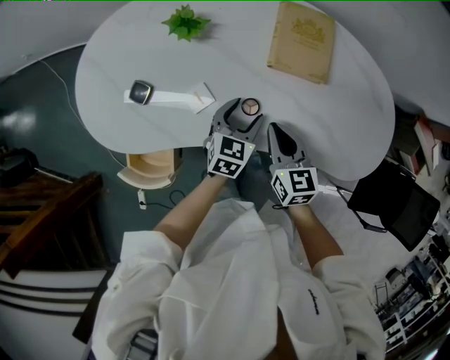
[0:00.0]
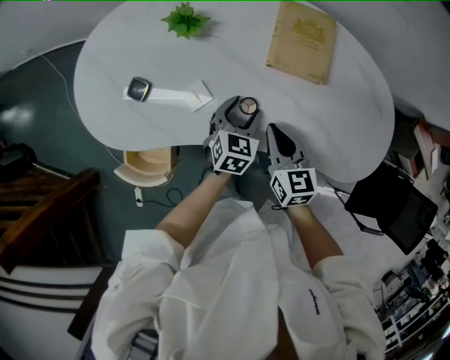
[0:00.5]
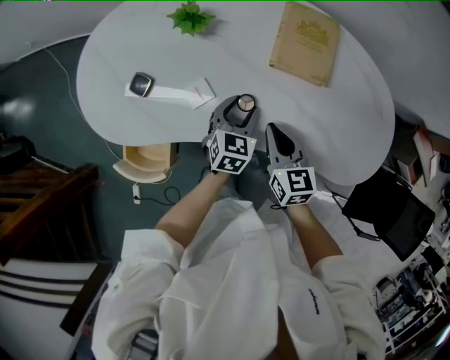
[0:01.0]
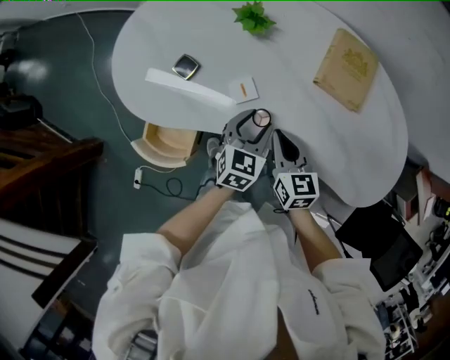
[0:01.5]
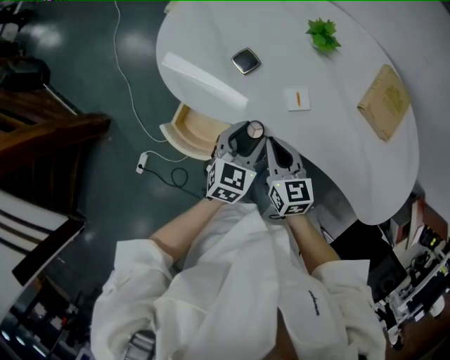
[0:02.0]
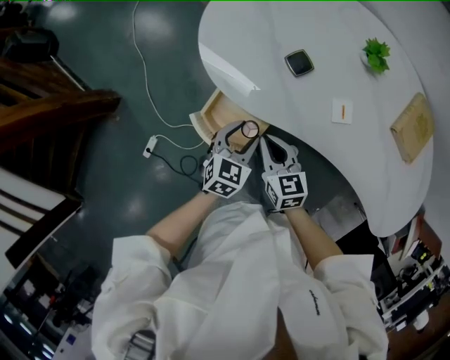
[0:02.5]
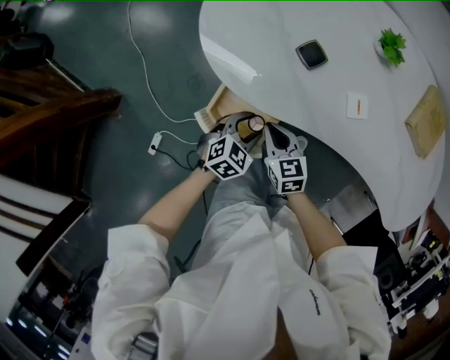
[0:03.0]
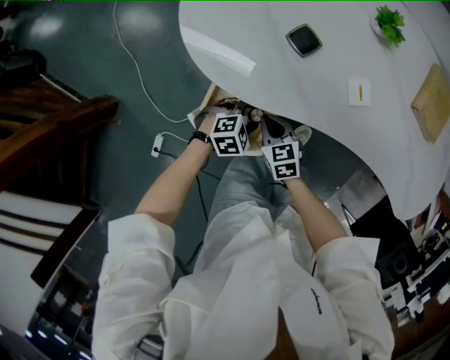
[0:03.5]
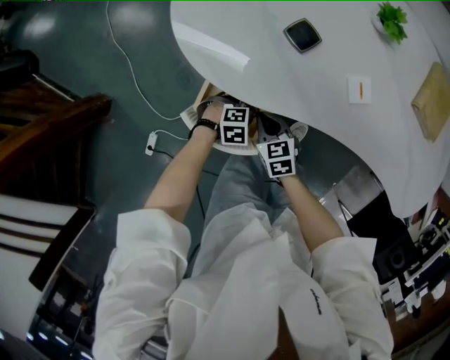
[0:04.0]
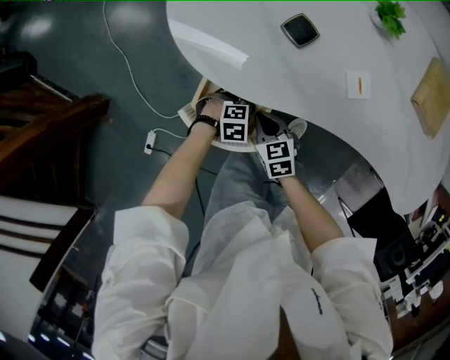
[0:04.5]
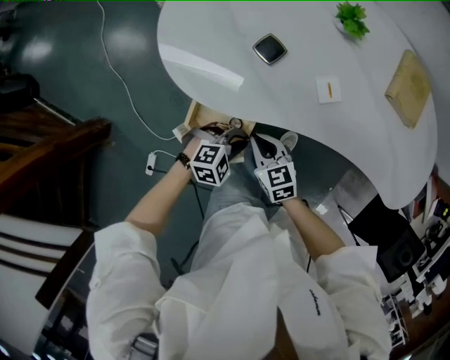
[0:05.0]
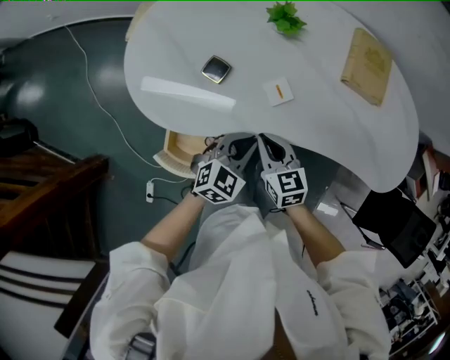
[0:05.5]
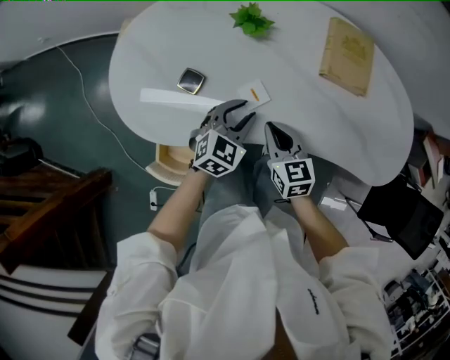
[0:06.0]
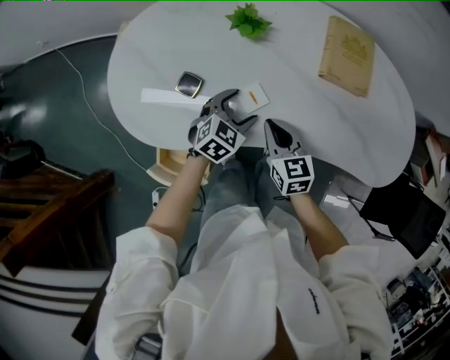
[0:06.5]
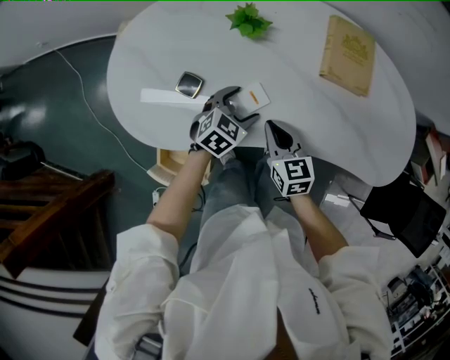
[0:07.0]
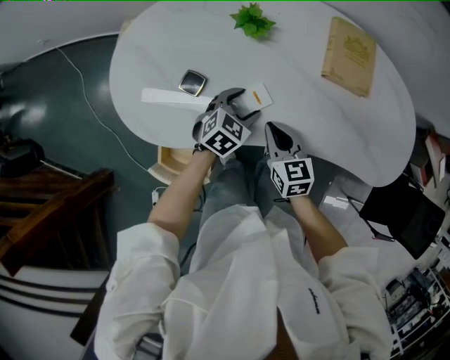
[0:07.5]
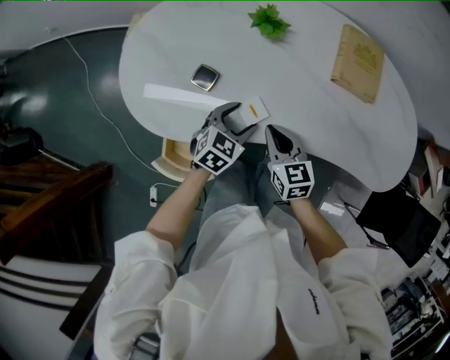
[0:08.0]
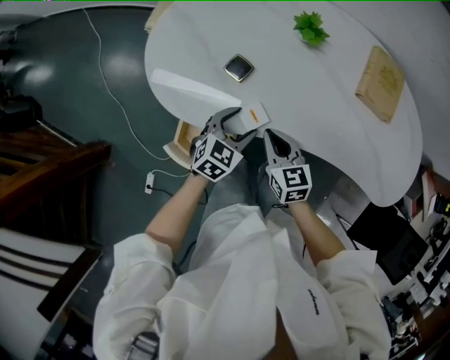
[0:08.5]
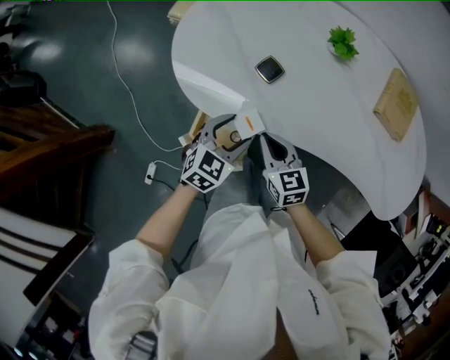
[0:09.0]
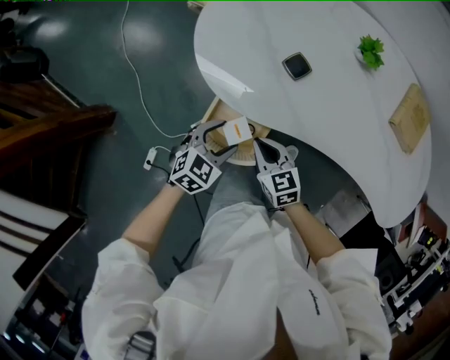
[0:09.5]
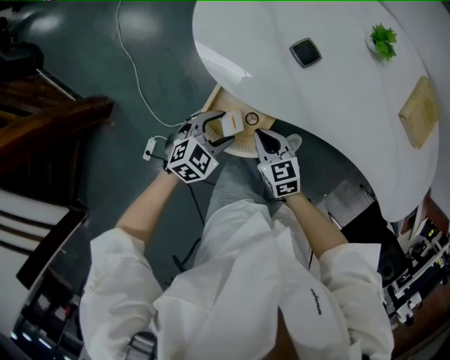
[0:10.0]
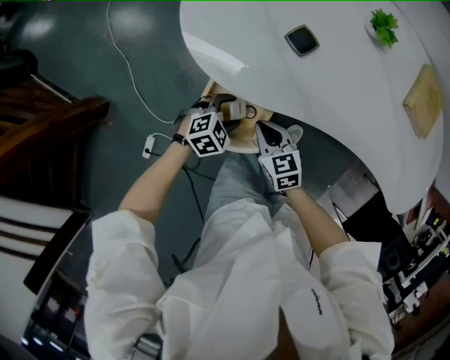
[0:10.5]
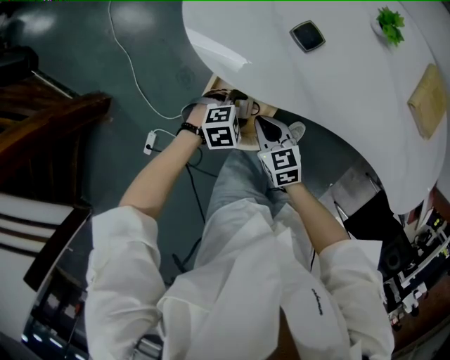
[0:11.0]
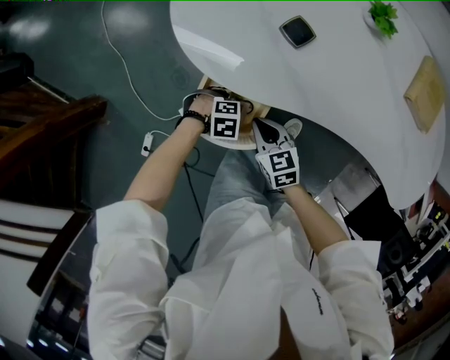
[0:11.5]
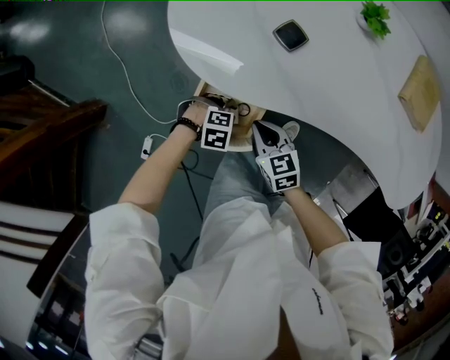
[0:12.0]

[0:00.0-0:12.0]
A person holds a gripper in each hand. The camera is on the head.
0:00.0 to 0:02.0: Both grippers move to the left, some 25 cm. The right gripper rotates about 20 degrees. The left gripper turns by about 20 degrees.
0:02.0 to 0:04.0: The two grippers go roughly 25 cm downward. The right gripper changes its angle by roughly 20 degrees; the left gripper rotates roughly 70 degrees.
0:04.0 to 0:06.0: The right gripper shifts by some 35 cm, and turns by some 30 degrees. The left gripper moves upward, about 25 cm, and points its fingers approximately 30 degrees further upward.
0:06.0 to 0:08.0: The left gripper moves approximately 5 cm, and opens its fingers.
0:08.0 to 0:10.0: The left gripper goes roughly 30 cm to the left and backward; the right gripper goes some 25 cm to the left, backward and downward, and changes its angle by about 30 degrees.
0:10.0 to 0:12.0: The left gripper moves downward, approximately 15 cm, and turns by roughly 50 degrees.

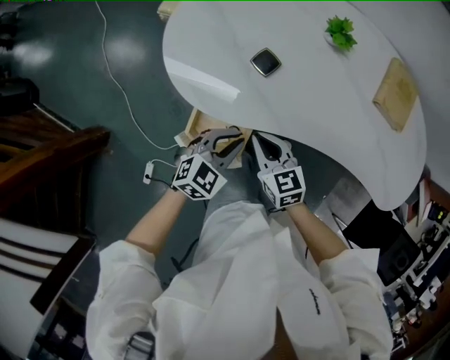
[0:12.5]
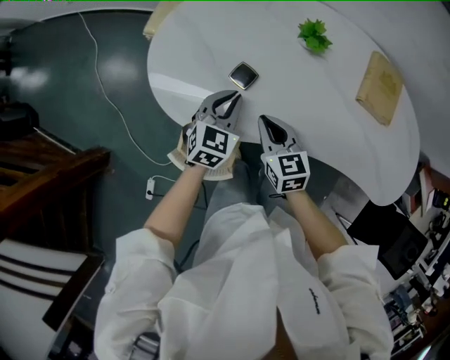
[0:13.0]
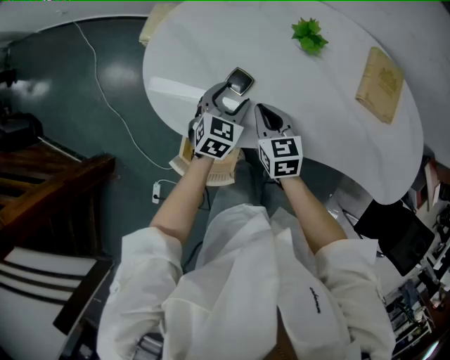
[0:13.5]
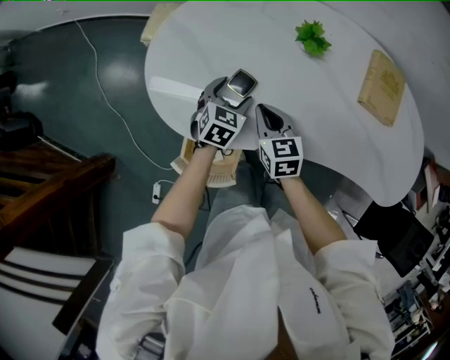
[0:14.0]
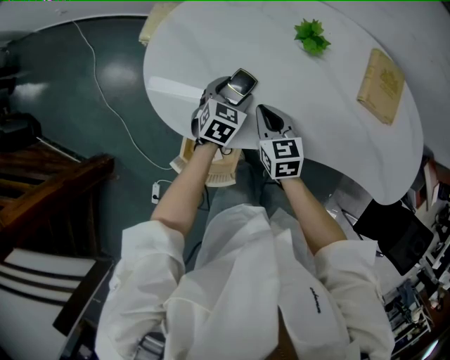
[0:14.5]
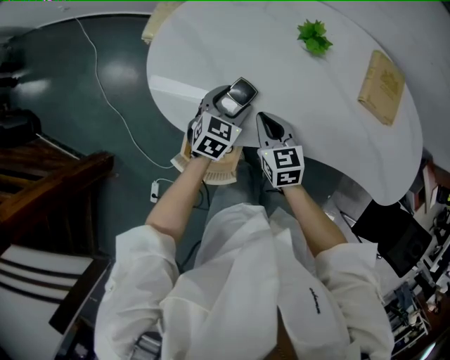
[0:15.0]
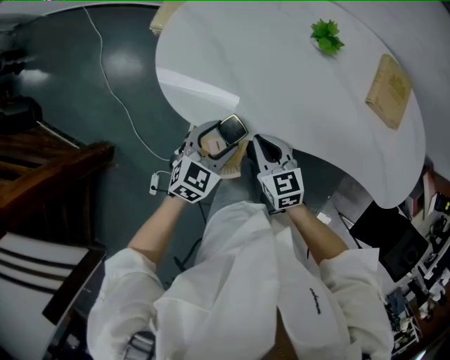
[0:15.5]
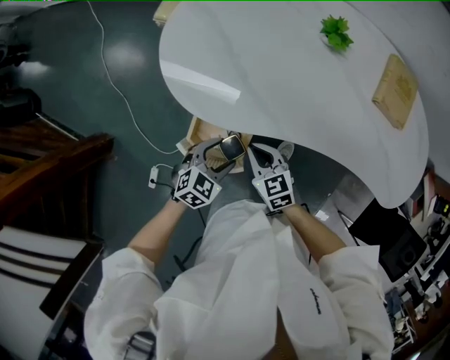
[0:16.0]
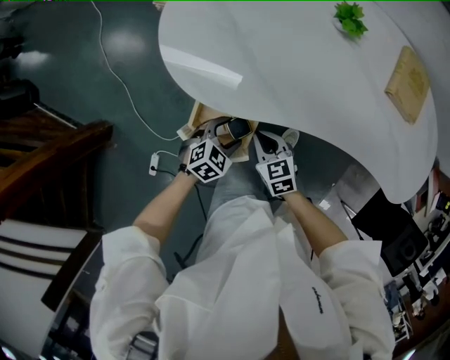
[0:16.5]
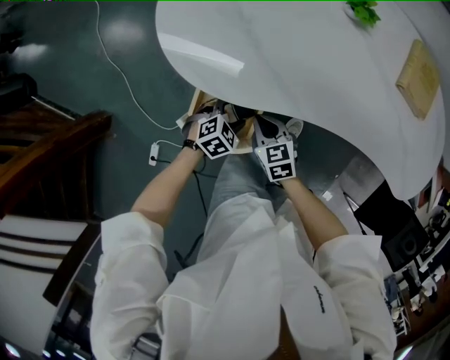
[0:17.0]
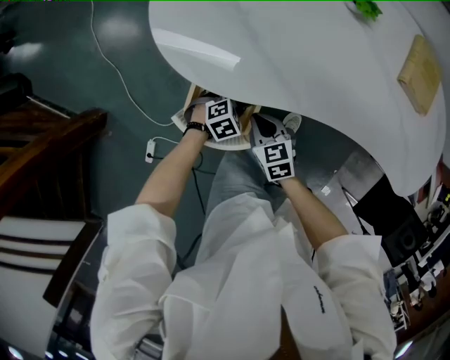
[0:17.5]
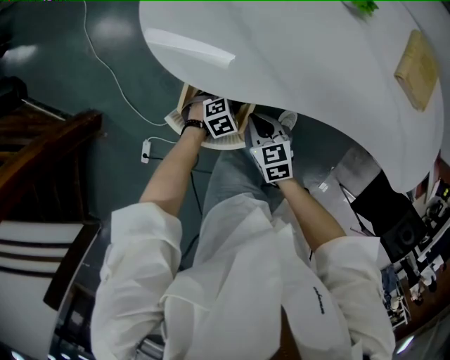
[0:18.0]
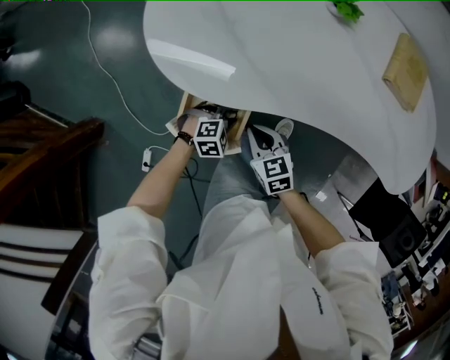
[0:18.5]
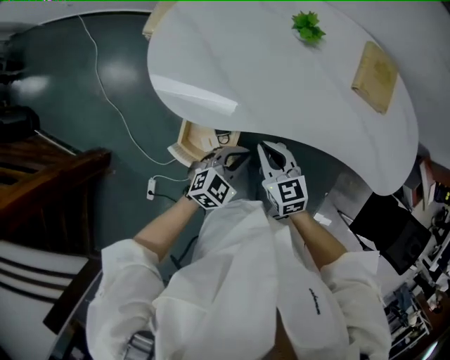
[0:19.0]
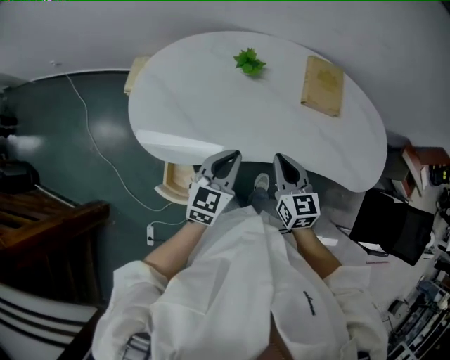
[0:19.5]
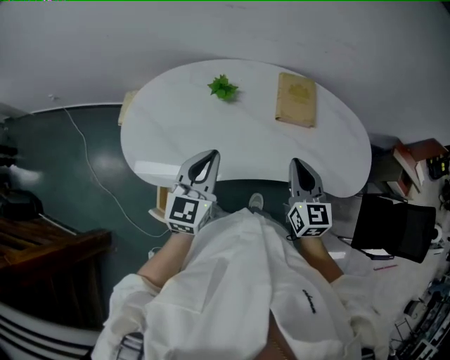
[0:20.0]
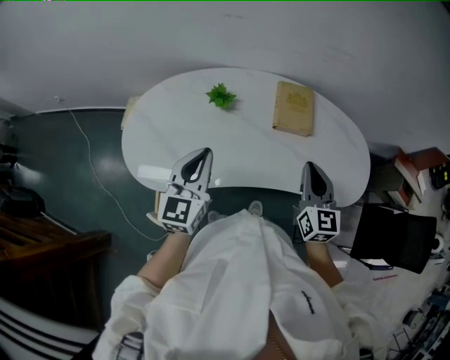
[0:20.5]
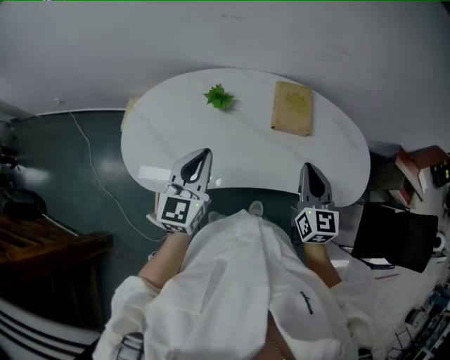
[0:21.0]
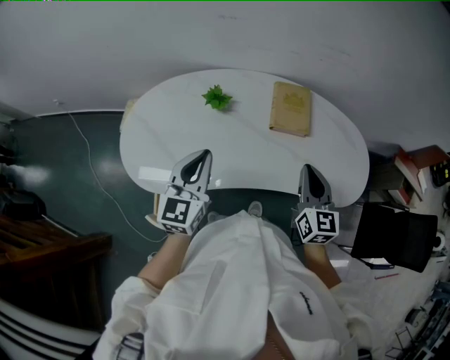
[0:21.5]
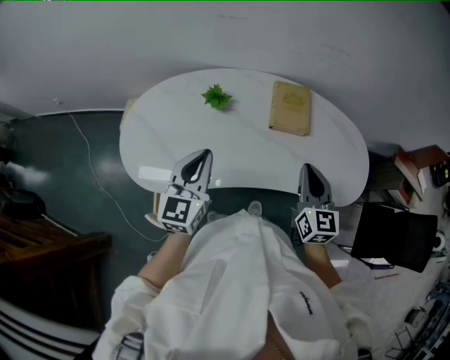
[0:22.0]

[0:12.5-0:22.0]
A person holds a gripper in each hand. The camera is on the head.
0:12.5 to 0:14.5: The two grippers go roughly 20 cm forward. The left gripper opens up.
0:14.5 to 0:16.5: The left gripper is displaced backward by roughly 25 cm, and rotates some 20 degrees; the right gripper heads backward and downward, covering about 20 cm, and rotates about 20 degrees.
0:16.5 to 0:18.0: The left gripper travels downward by roughly 15 cm.
0:18.0 to 0:20.0: The right gripper shifts about 50 cm upward and to the right, and tips its fingers upward by approximately 30 degrees. The left gripper shifts about 50 cm upward, points its fingers roughly 60 degrees further upward, and closes its fingers.
0:20.0 to 0:22.0: The right gripper is displaced to the right by about 5 cm.

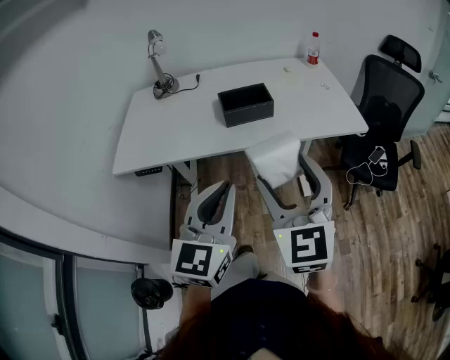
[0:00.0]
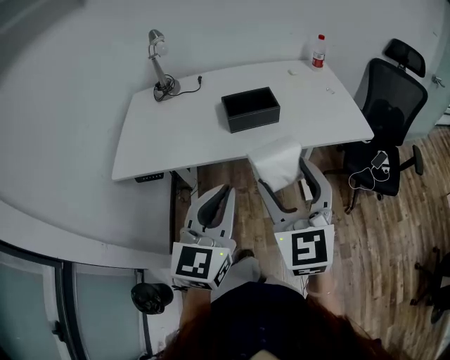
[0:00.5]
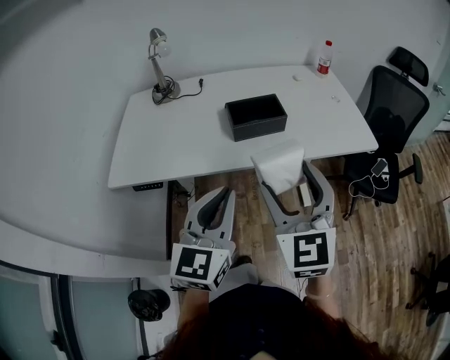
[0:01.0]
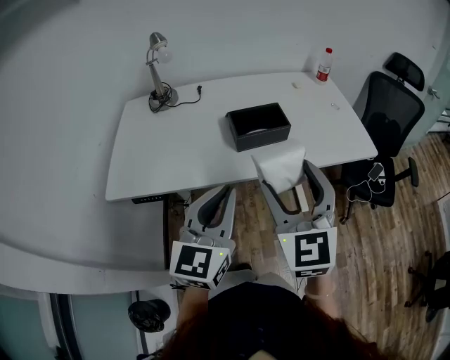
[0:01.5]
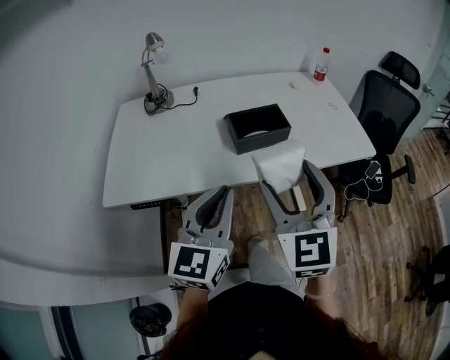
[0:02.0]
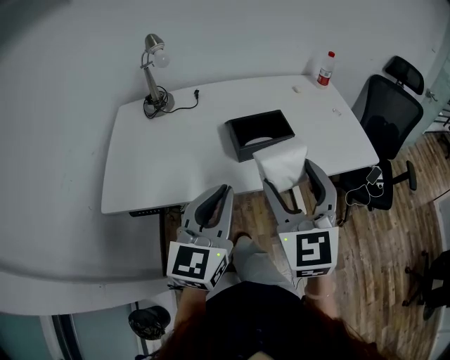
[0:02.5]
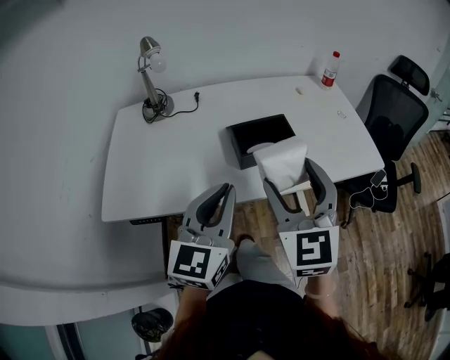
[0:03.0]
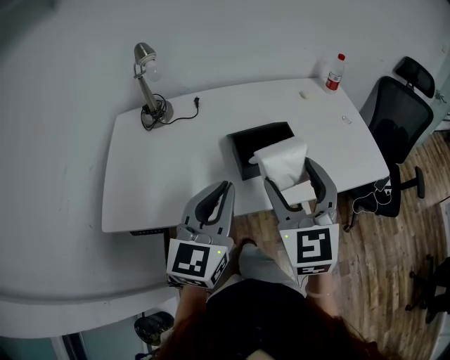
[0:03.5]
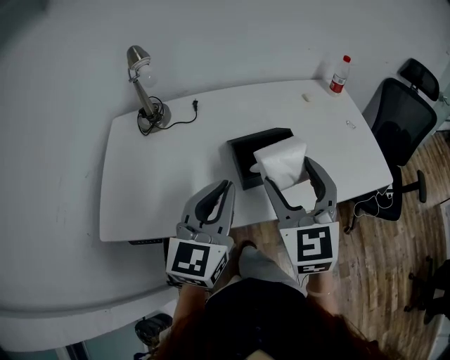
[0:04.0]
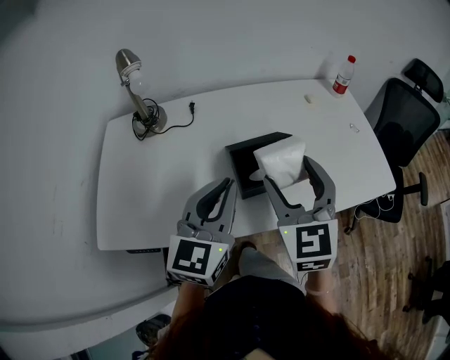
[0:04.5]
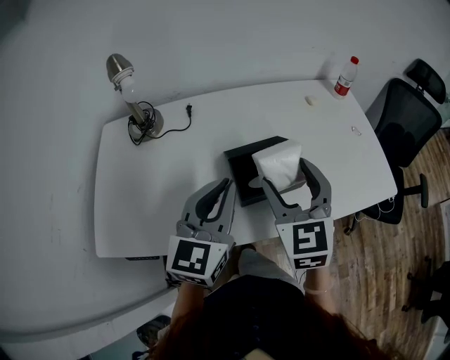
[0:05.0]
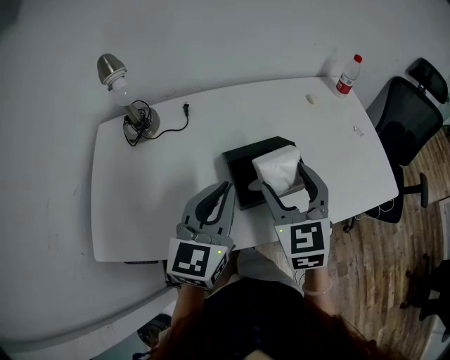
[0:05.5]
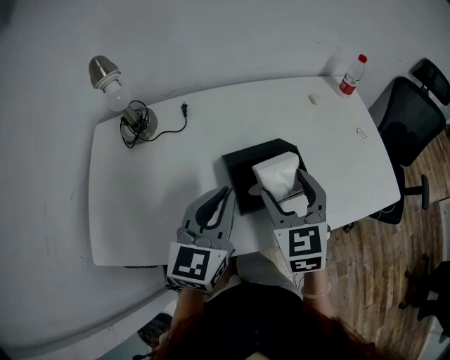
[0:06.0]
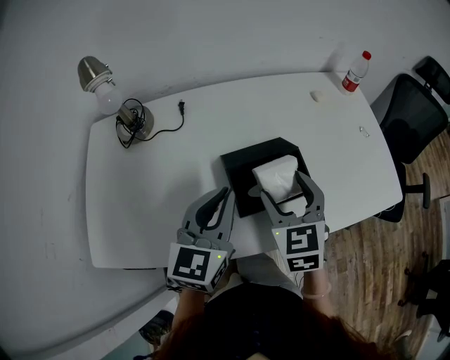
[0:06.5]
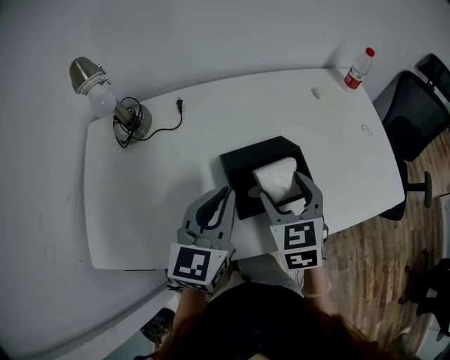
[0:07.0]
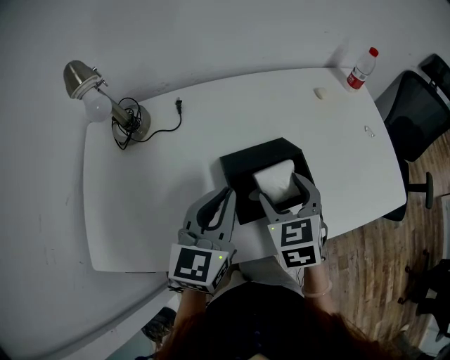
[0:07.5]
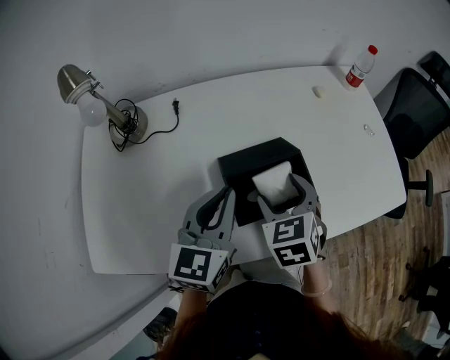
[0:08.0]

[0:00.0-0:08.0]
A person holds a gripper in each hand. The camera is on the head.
0:00.0 to 0:02.0: Both grippers travel together forward and to the left, roughly 15 cm.
0:02.0 to 0:04.0: Both grippers travel together forward, roughly 15 cm.
0:04.0 to 0:06.0: Both grippers travel together forward and downward, approximately 10 cm.
0:06.0 to 0:08.0: The left gripper changes place by roughly 5 cm. Meanwhile the right gripper goes about 5 cm downward, and turns by some 20 degrees.
